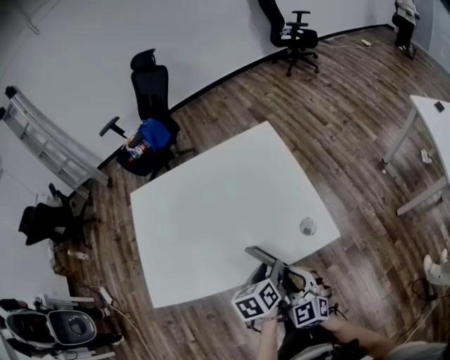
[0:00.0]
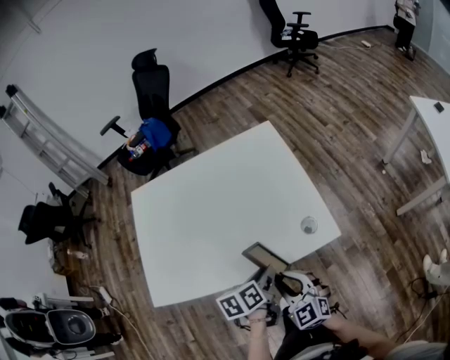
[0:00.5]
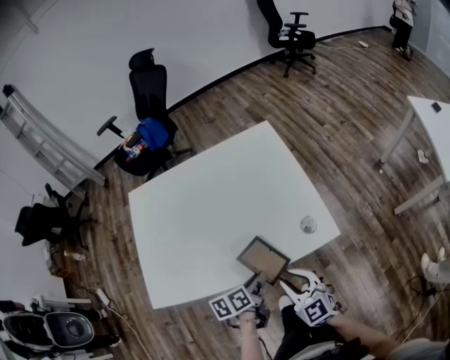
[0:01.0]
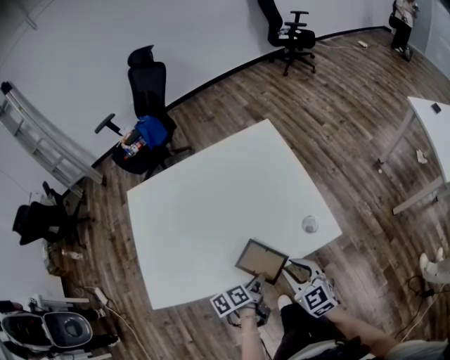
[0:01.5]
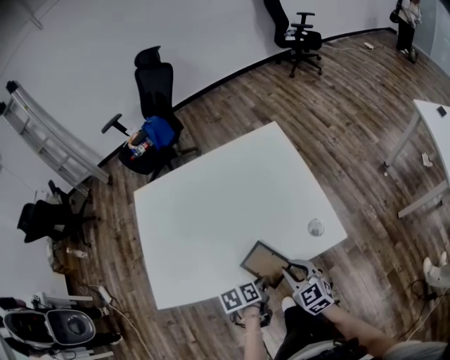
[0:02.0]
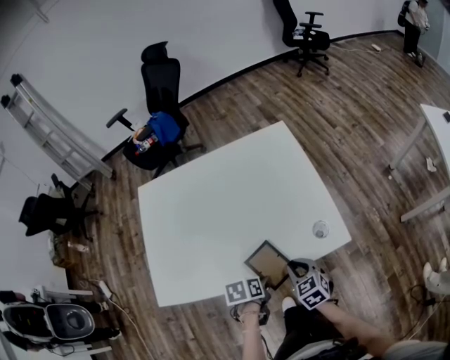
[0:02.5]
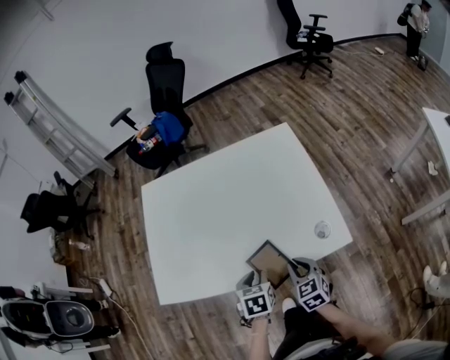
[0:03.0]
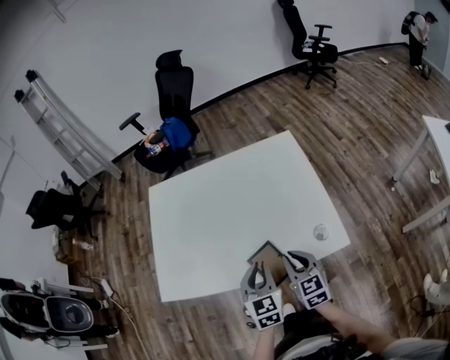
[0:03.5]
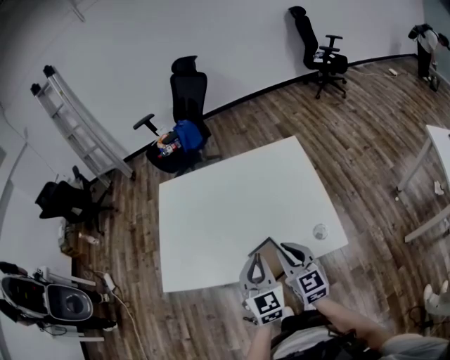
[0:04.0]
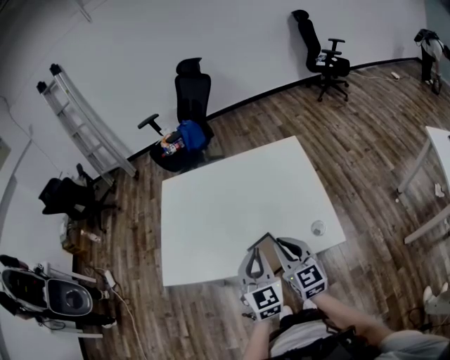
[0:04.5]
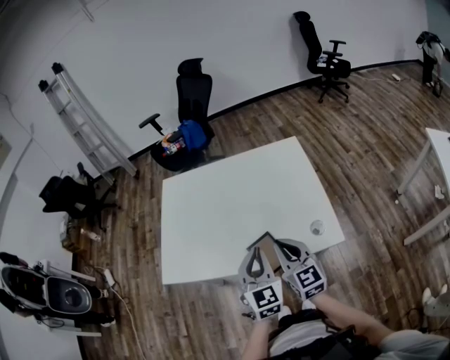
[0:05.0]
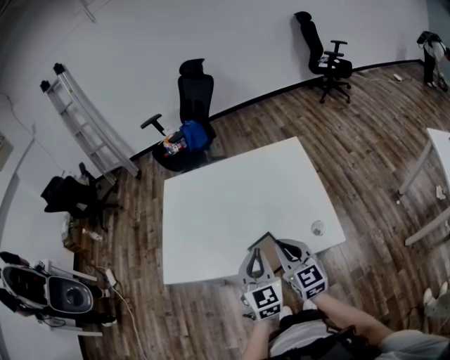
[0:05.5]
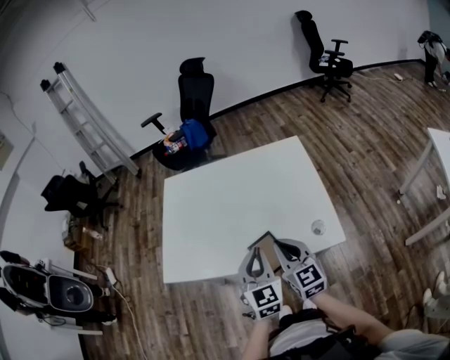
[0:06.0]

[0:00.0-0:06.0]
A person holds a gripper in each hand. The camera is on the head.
0:00.0 to 0:02.0: The left gripper goes roughly 10 cm downward and to the left, rotates roughly 20 degrees, and closes up; the right gripper changes place by approximately 5 cm.
0:02.0 to 0:04.0: The left gripper goes some 20 cm upward, and tilts its fingers roughly 40 degrees upward, while the right gripper heads upward, covering roughly 15 cm, and changes its angle by about 20 degrees.
0:04.0 to 0:06.0: The grippers make only small movements.

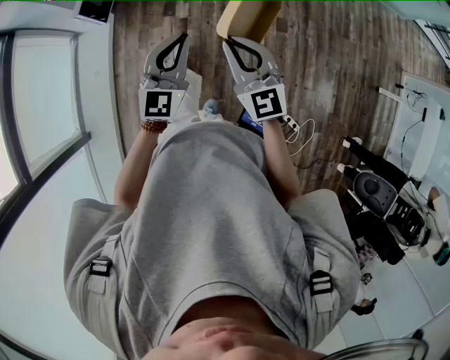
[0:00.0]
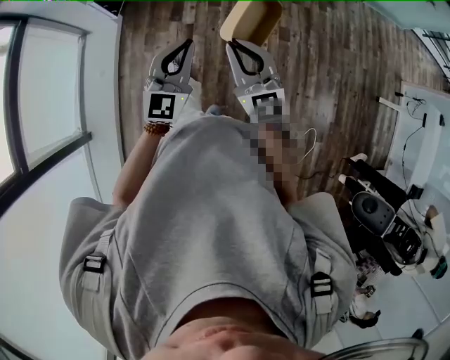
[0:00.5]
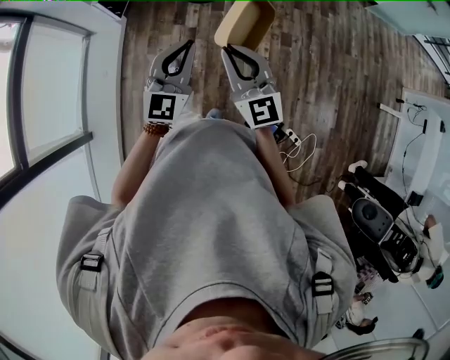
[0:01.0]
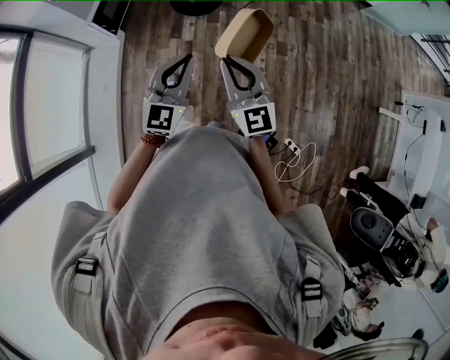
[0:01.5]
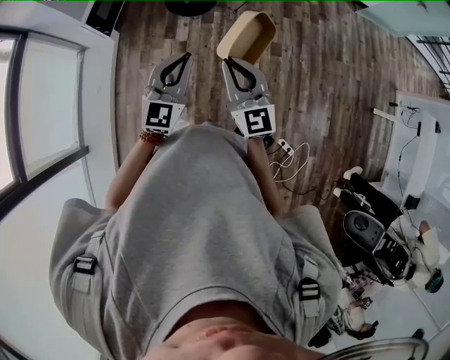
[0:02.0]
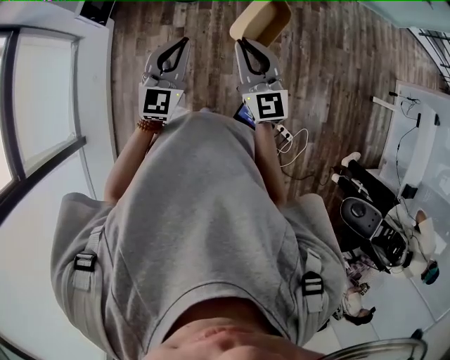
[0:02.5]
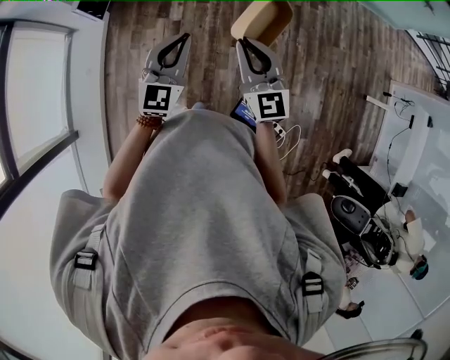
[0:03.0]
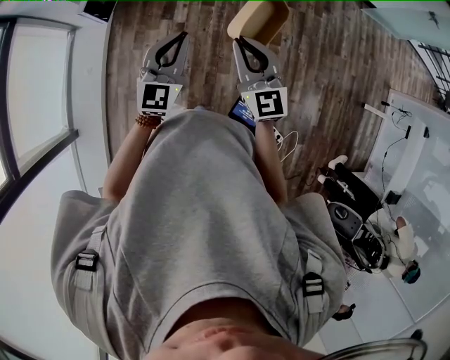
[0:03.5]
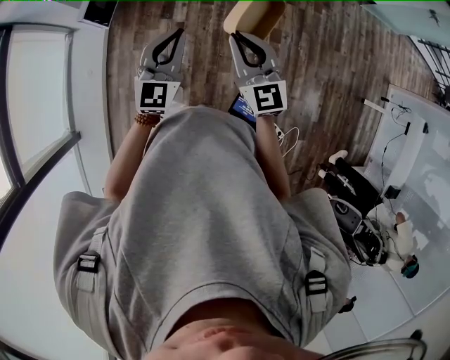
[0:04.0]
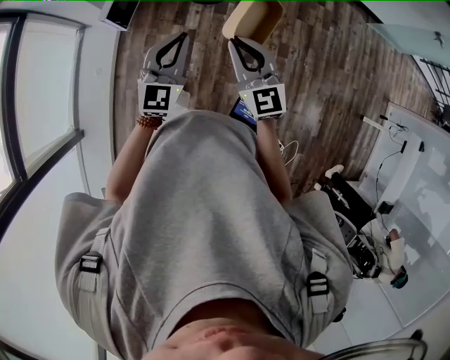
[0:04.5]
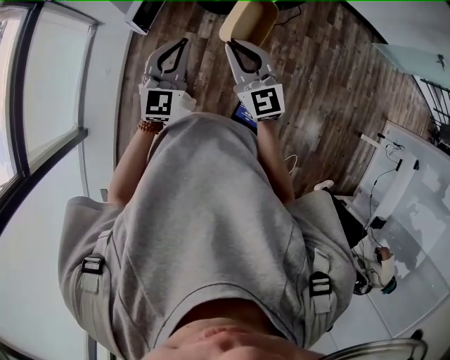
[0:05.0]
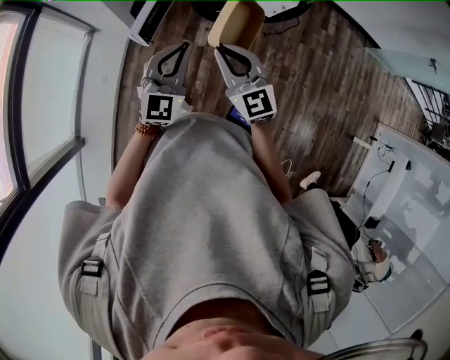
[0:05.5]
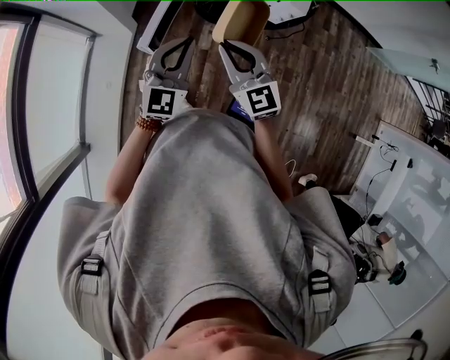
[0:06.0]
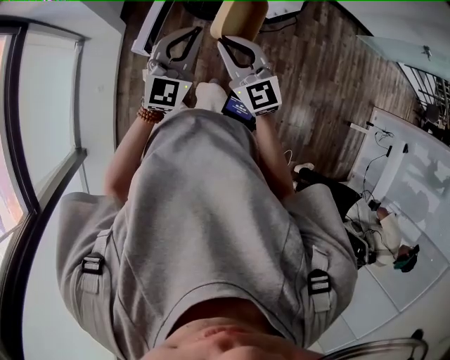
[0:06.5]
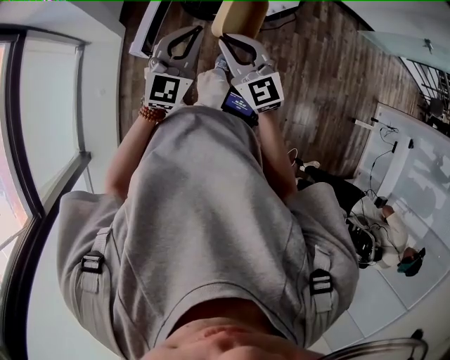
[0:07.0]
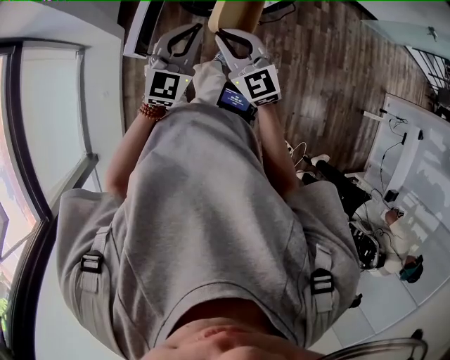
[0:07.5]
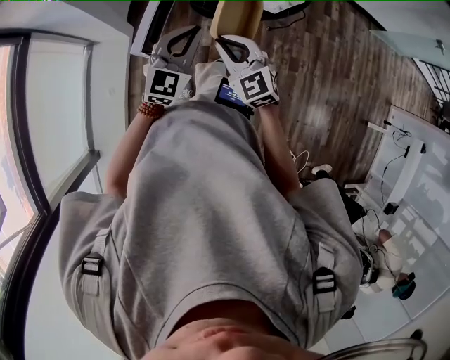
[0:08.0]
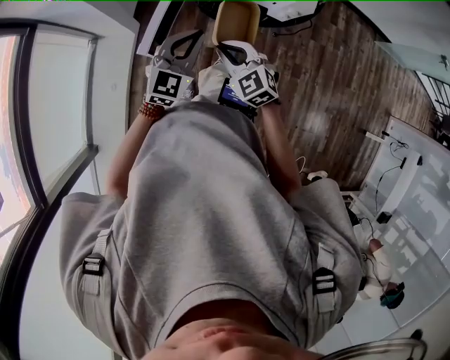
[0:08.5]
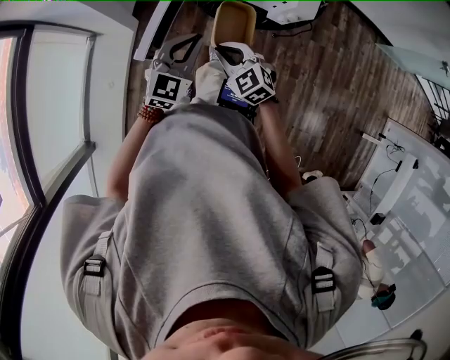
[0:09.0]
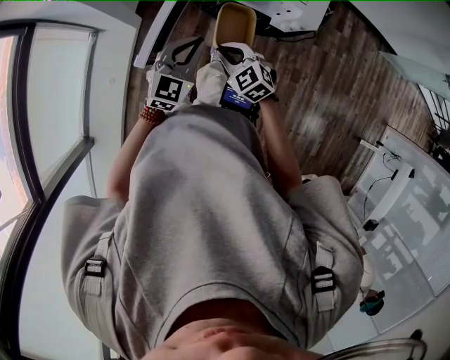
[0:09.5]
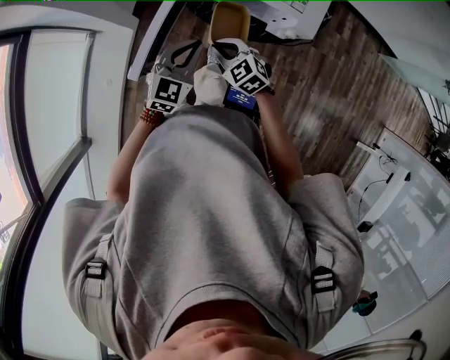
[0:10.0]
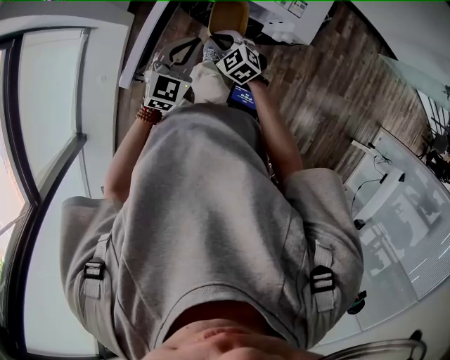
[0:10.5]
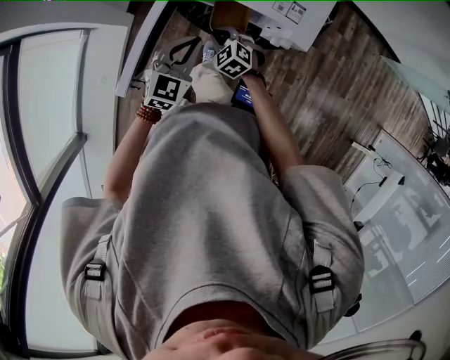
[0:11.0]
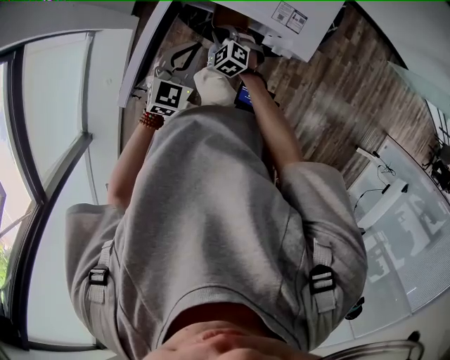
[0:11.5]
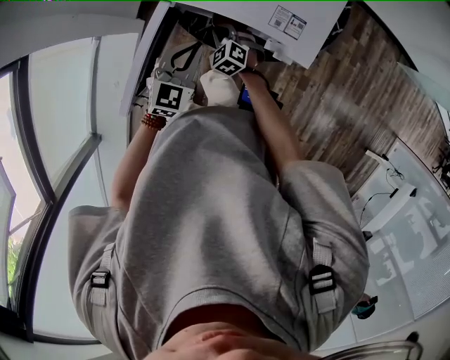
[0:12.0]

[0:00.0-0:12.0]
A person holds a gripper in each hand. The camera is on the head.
0:00.0 to 0:02.0: The right gripper changes place by roughly 5 cm. Meanwhile the left gripper shifts by roughly 5 cm.
0:02.0 to 0:04.0: The grippers both shift forward and to the left by about 15 cm.
0:04.0 to 0:06.0: Both grippers move to the left and forward, roughly 25 cm.
0:06.0 to 0:08.0: The left gripper changes place by about 5 cm, while the right gripper shifts about 5 cm downward.
0:08.0 to 0:10.0: The left gripper is displaced forward and downward by approximately 10 cm. Meanwhile the right gripper moves downward and forward, some 15 cm, and rotates approximately 20 degrees.
0:10.0 to 0:12.0: The right gripper shifts about 20 cm forward and downward; the left gripper goes approximately 10 cm forward and to the right.

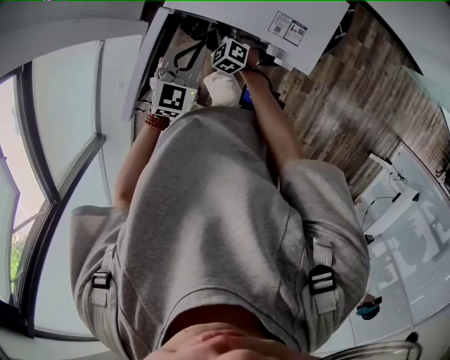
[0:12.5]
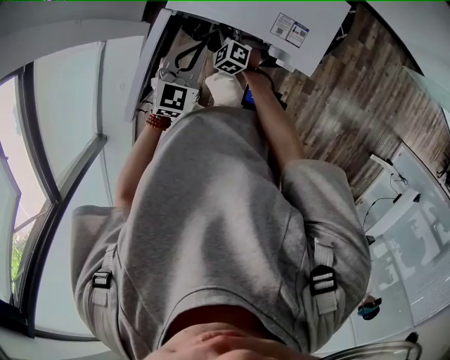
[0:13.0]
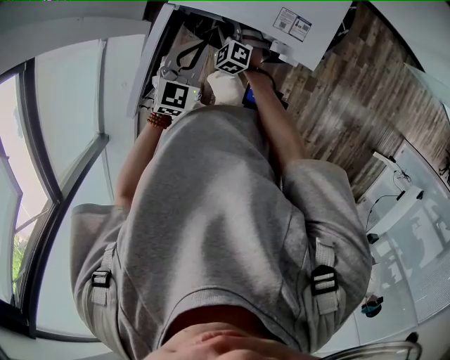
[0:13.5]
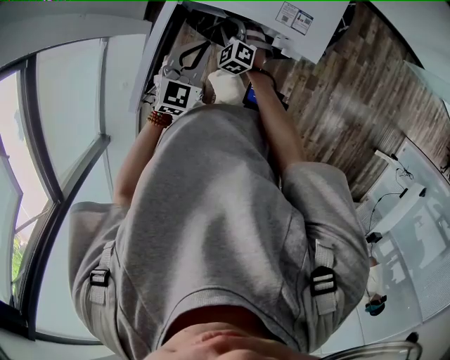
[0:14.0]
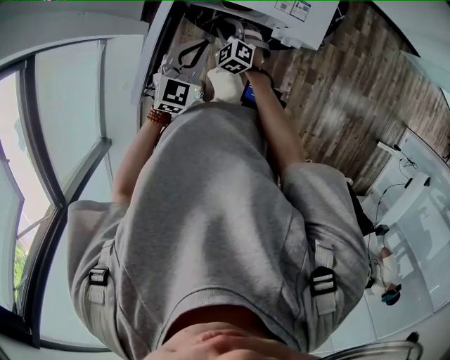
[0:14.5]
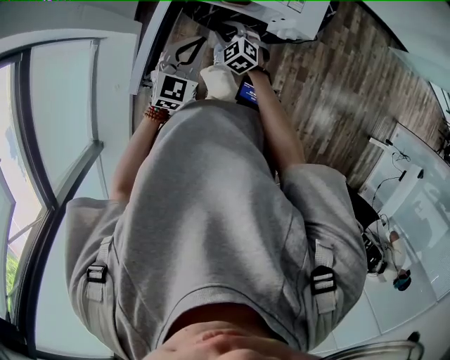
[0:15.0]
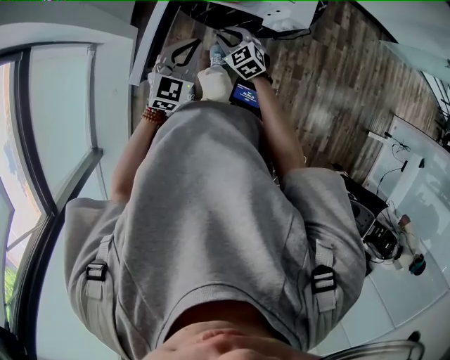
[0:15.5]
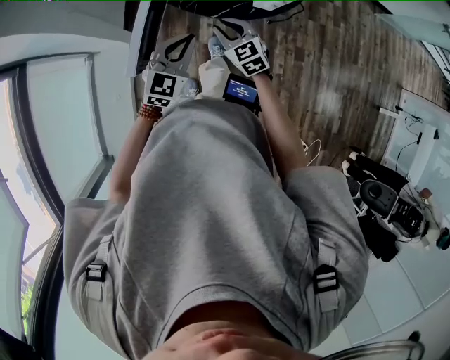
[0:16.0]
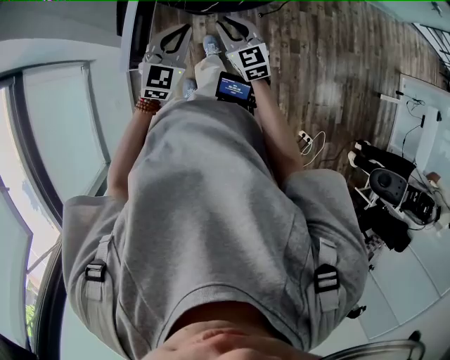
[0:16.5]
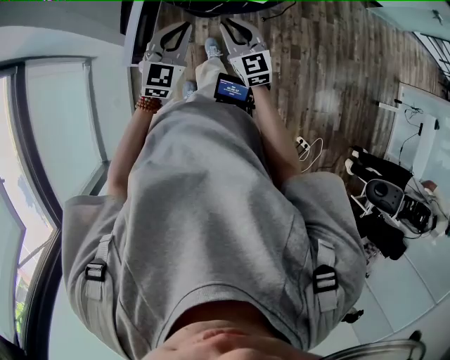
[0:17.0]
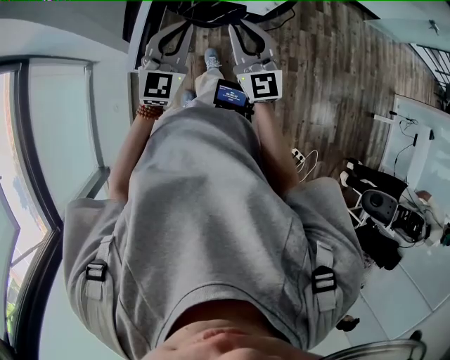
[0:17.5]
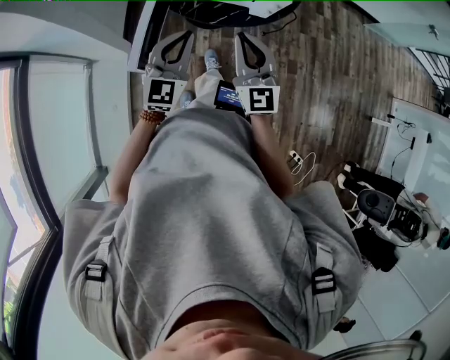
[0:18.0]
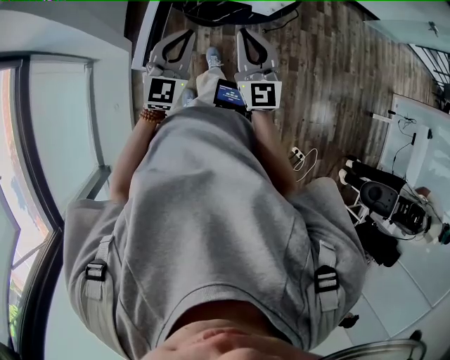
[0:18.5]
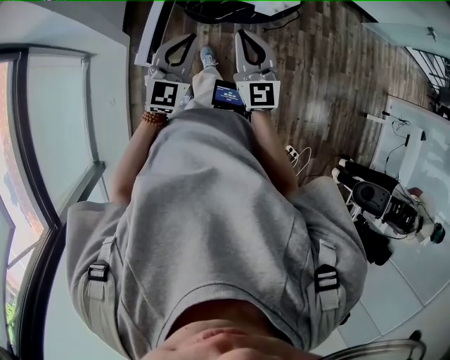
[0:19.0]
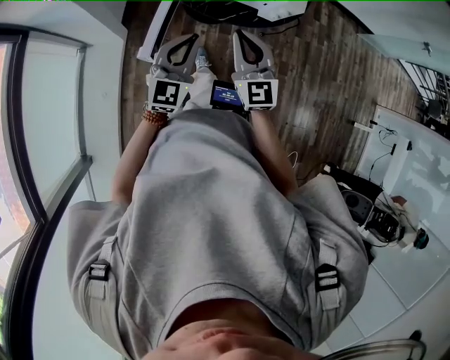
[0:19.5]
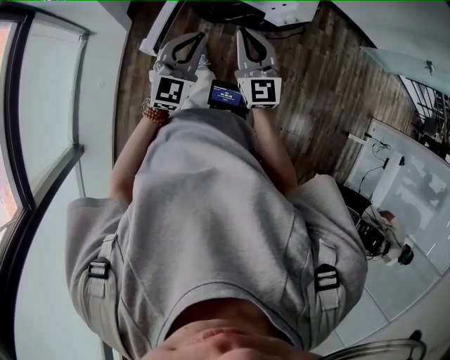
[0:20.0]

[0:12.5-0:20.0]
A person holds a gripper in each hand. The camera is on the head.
0:12.5 to 0:14.5: The grippers both shift backward by some 5 cm.
0:14.5 to 0:16.5: The left gripper moves backward, roughly 10 cm; the right gripper is displaced backward and upward by about 20 cm, and turns by approximately 40 degrees.
0:16.5 to 0:18.0: The left gripper is displaced upward by some 5 cm; the right gripper is displaced upward by about 15 cm, and swivels some 20 degrees.
0:18.0 to 0:20.0: The right gripper heads to the left, covering roughly 5 cm.

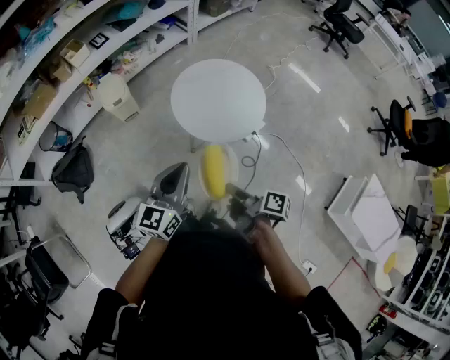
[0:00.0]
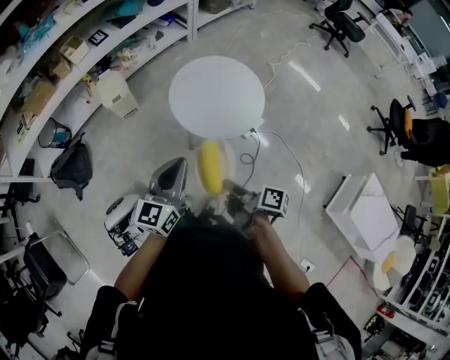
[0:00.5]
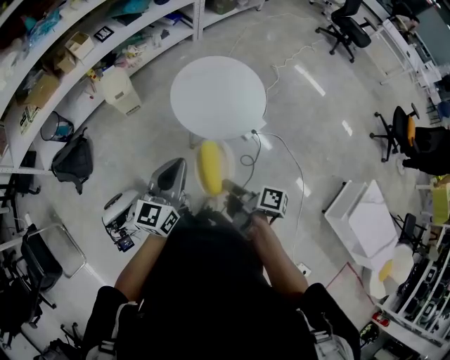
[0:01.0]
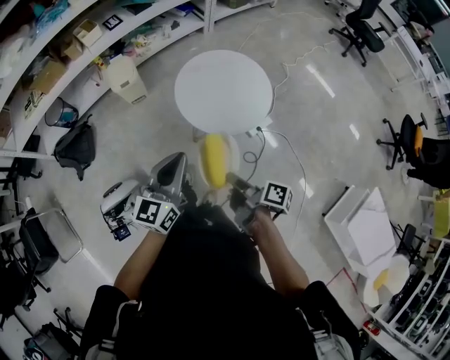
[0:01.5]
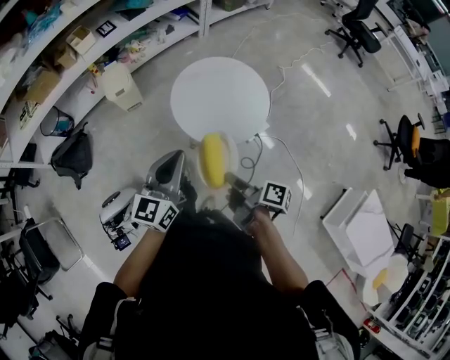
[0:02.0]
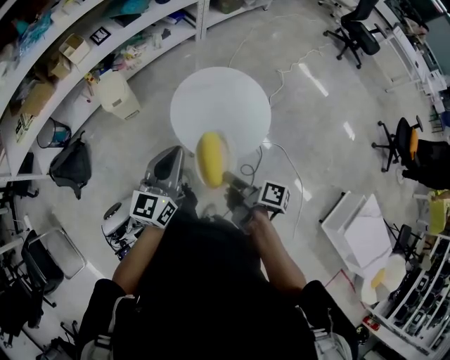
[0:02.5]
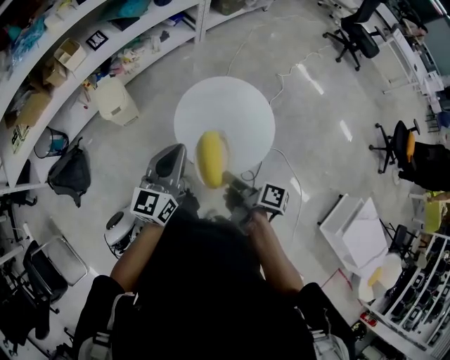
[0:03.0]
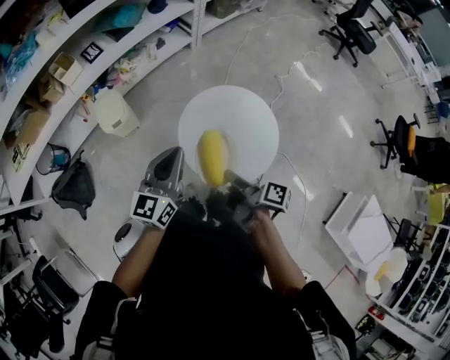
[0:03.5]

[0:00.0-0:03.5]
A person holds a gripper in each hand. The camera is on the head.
0:00.0 to 0:02.0: The left gripper moves approximately 5 cm.
0:02.0 to 0:03.5: The left gripper ends up some 25 cm from where it was.
